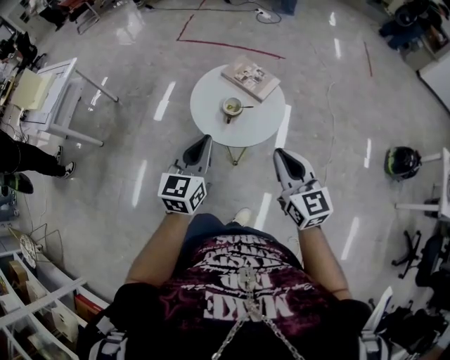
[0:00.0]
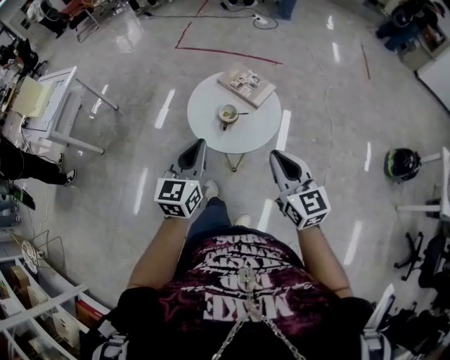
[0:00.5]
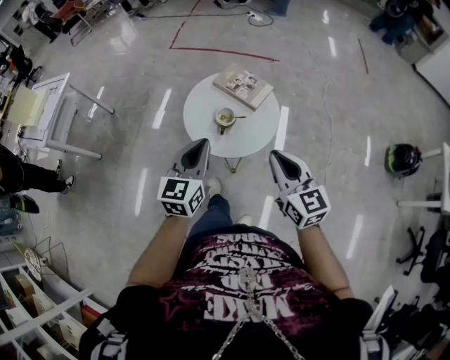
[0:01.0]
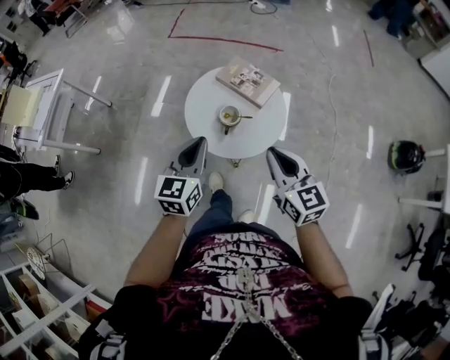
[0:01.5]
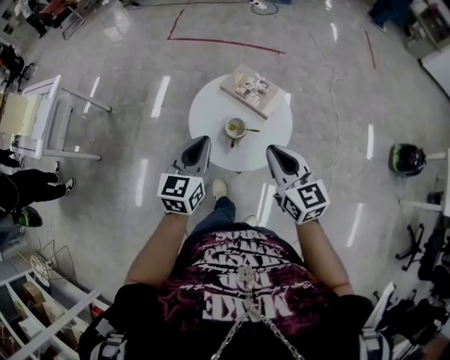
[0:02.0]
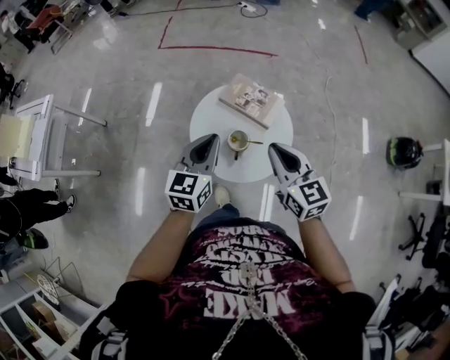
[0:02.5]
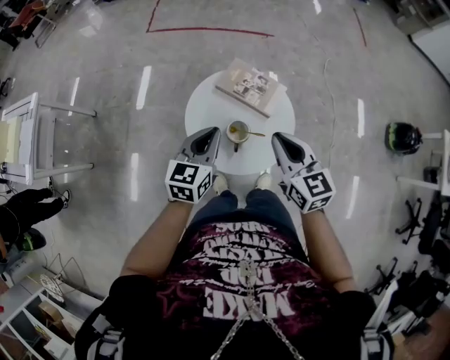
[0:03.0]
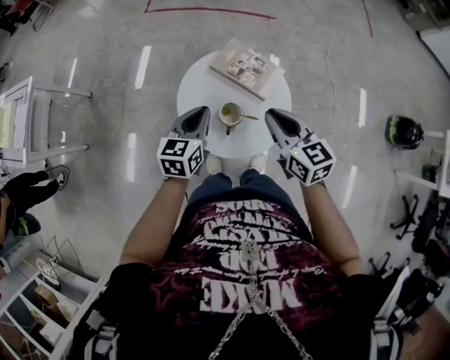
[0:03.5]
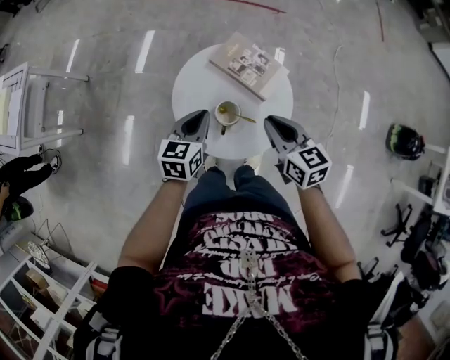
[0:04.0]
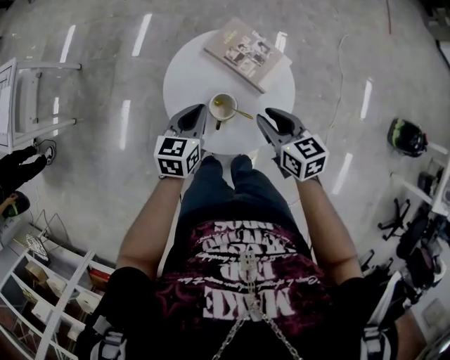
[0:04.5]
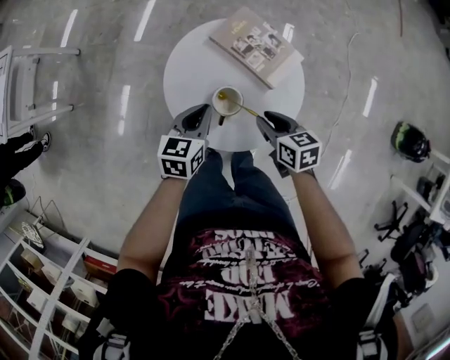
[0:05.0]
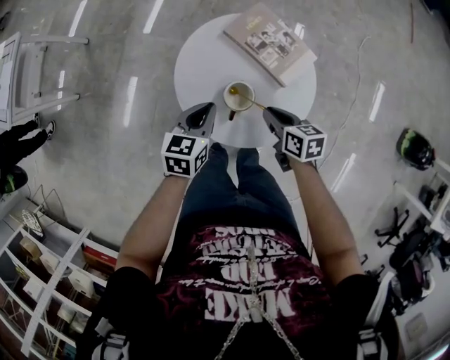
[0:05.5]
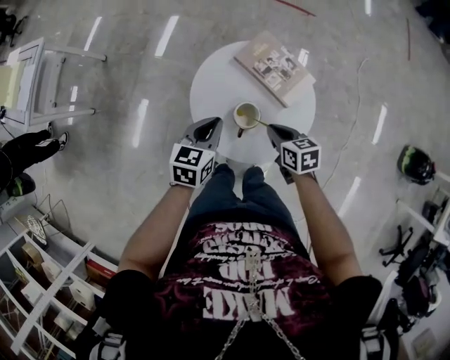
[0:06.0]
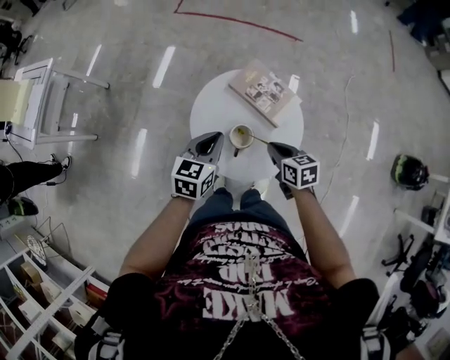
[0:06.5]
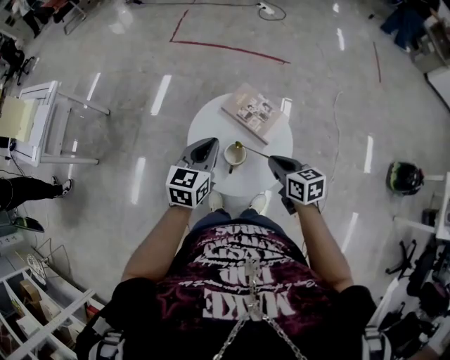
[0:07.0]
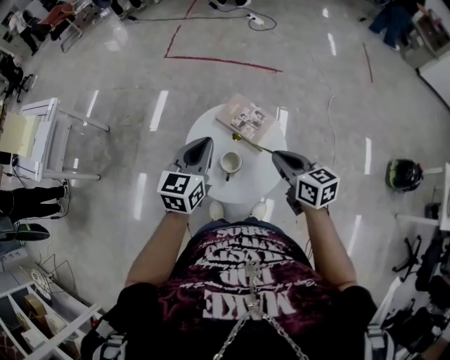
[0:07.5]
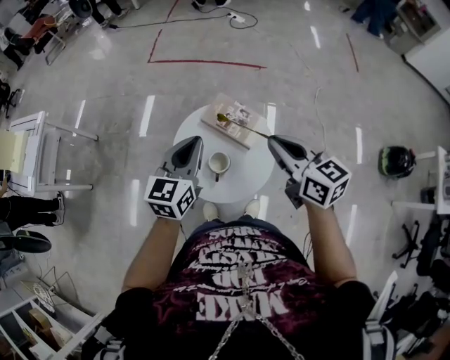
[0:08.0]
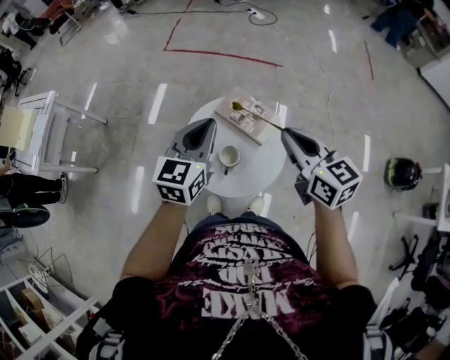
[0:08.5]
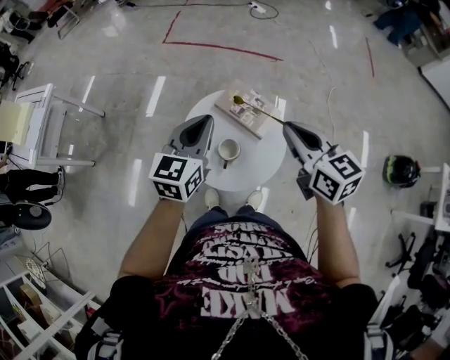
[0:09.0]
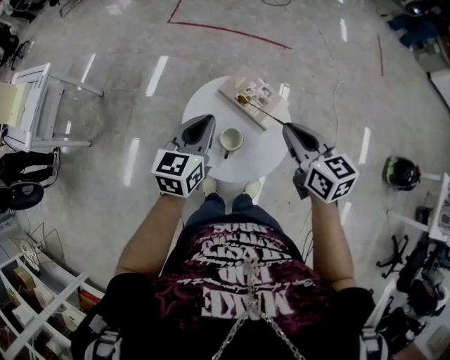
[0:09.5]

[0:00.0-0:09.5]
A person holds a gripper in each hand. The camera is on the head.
0:00.0 to 0:02.0: Both grippers travel together forward, roughly 15 cm.
0:02.0 to 0:04.0: The grippers both shift downward and forward by about 15 cm.
0:04.0 to 0:05.5: The left gripper shifts approximately 10 cm downward. Meanwhile the right gripper goes some 20 cm downward, and changes its angle by some 30 degrees.
0:05.5 to 0:07.5: Both grippers move upward, about 25 cm. The left gripper rotates some 20 degrees; the right gripper changes its angle by about 20 degrees.

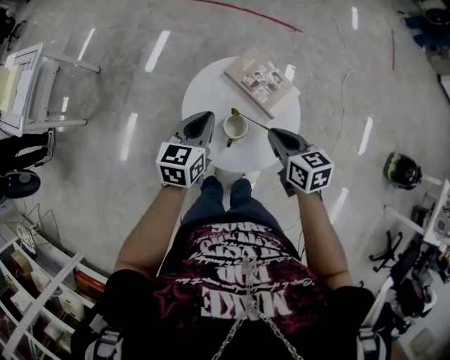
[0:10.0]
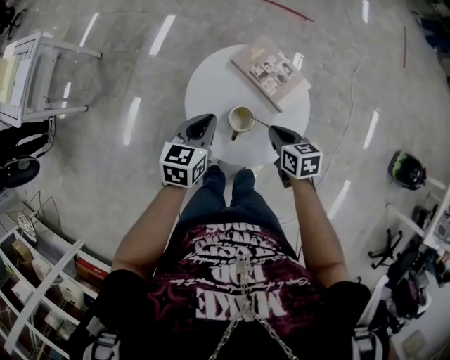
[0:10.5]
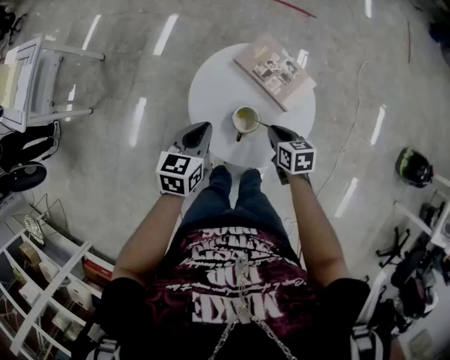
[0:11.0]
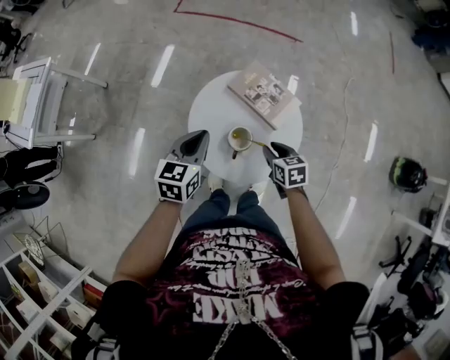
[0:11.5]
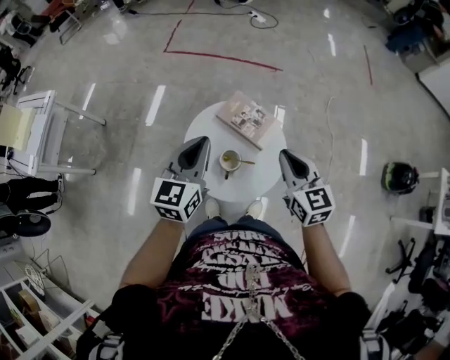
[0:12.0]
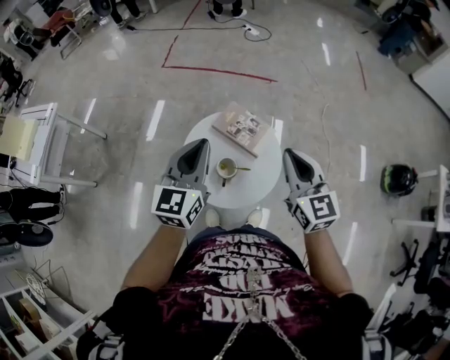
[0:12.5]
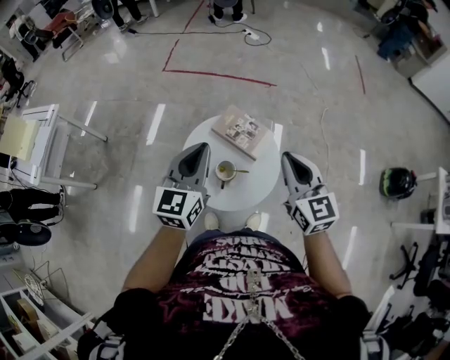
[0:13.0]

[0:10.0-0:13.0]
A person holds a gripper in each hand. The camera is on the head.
0:10.0 to 0:11.5: The right gripper goes approximately 10 cm downward, and opens its fingers.
0:11.5 to 0:13.0: The right gripper goes some 35 cm upward, points its fingers approximately 40 degrees further upward, and closes. Meanwhile the left gripper moves upward, about 20 cm, and changes its angle by approximately 30 degrees.

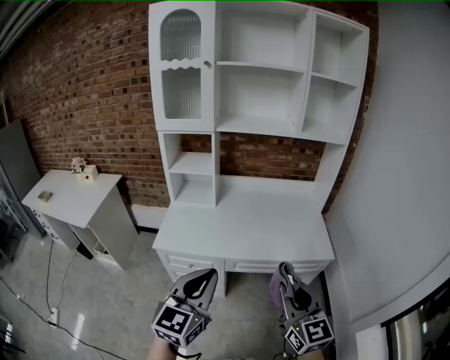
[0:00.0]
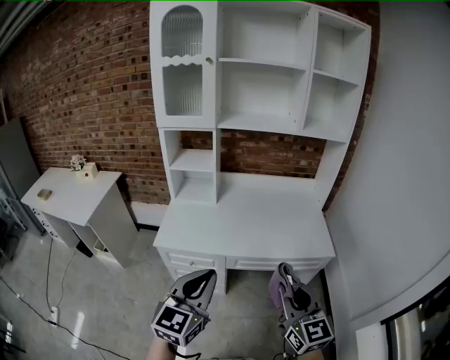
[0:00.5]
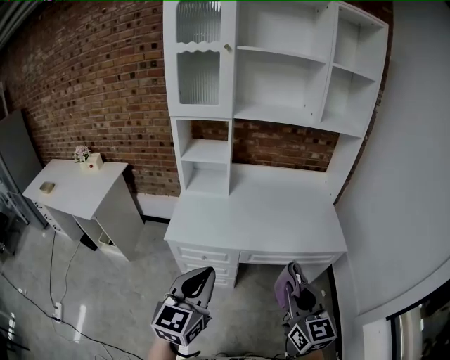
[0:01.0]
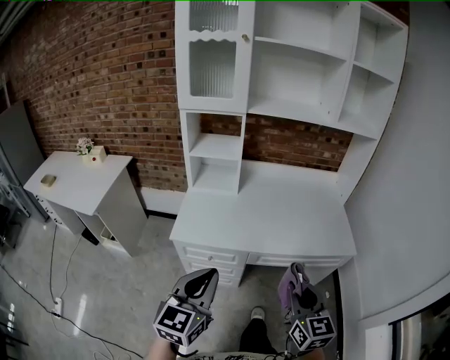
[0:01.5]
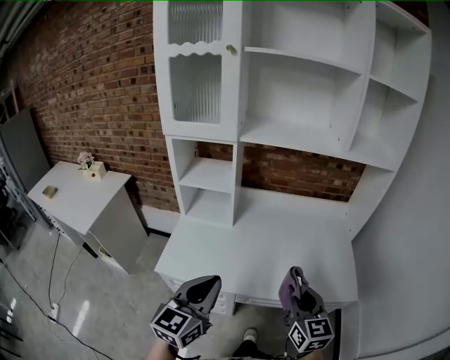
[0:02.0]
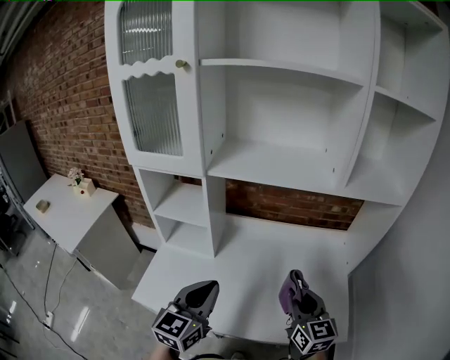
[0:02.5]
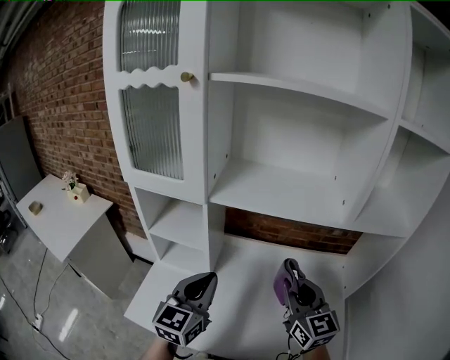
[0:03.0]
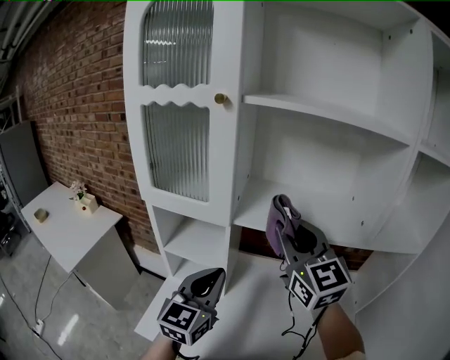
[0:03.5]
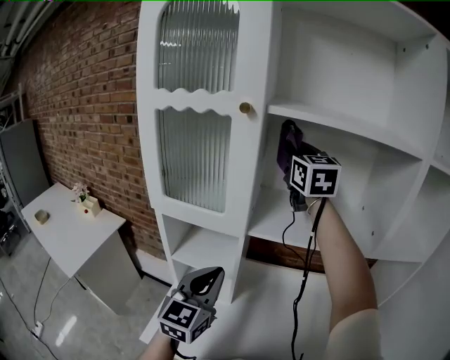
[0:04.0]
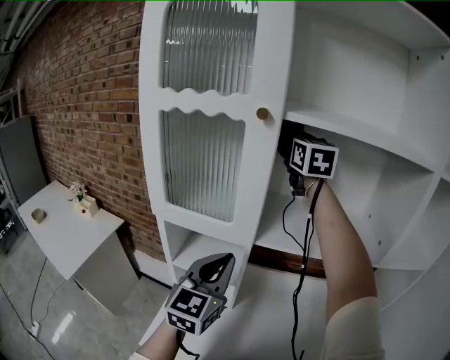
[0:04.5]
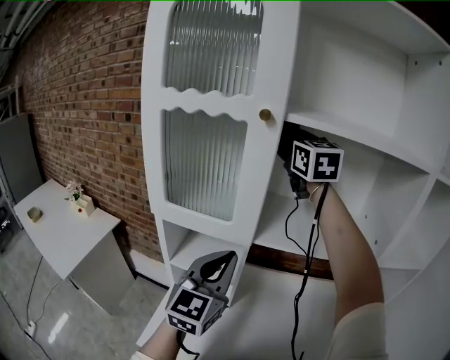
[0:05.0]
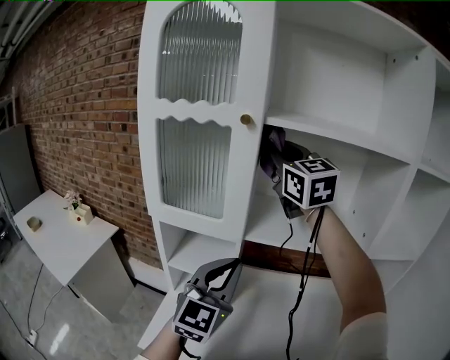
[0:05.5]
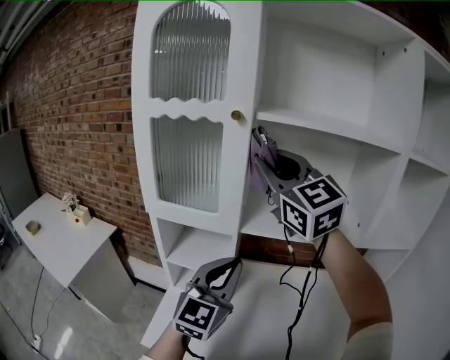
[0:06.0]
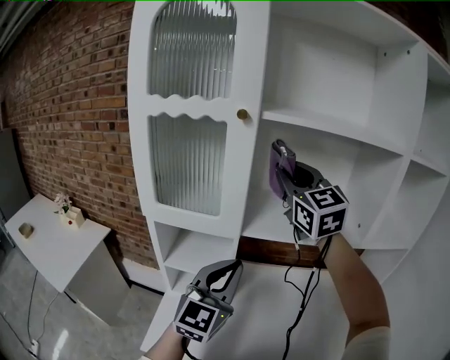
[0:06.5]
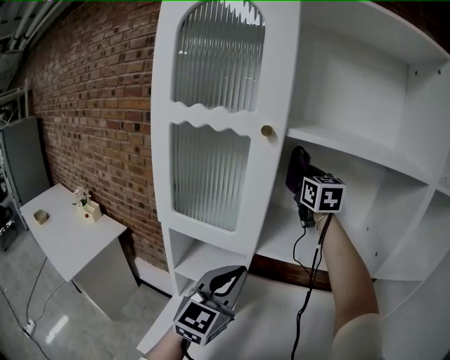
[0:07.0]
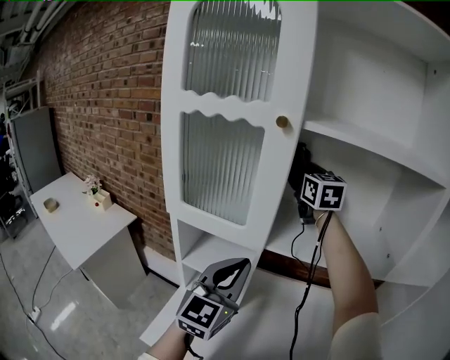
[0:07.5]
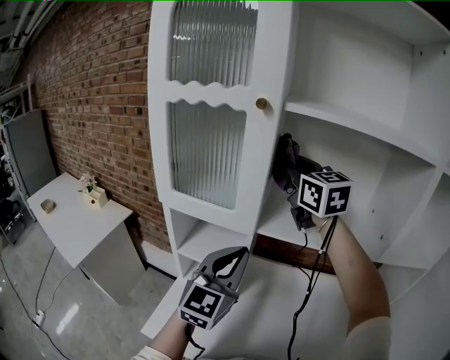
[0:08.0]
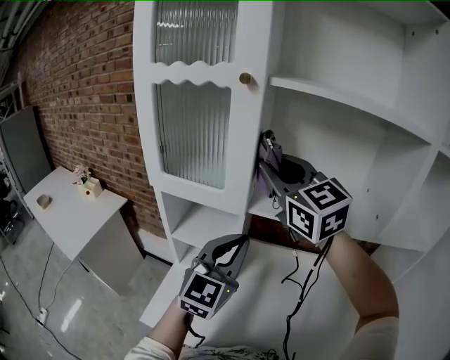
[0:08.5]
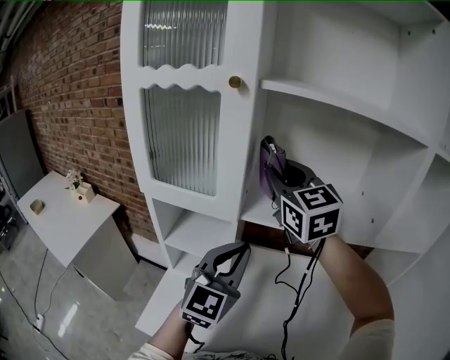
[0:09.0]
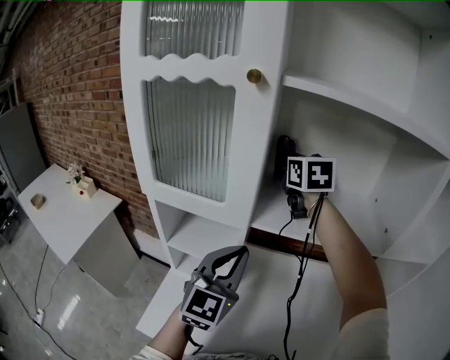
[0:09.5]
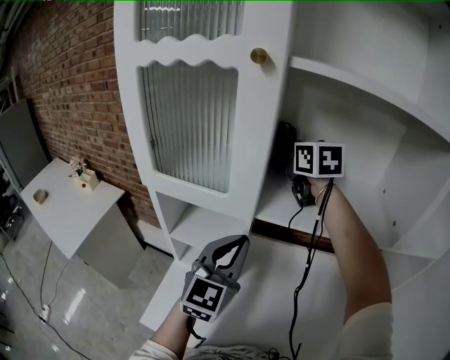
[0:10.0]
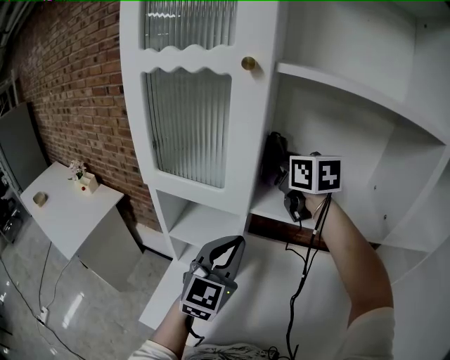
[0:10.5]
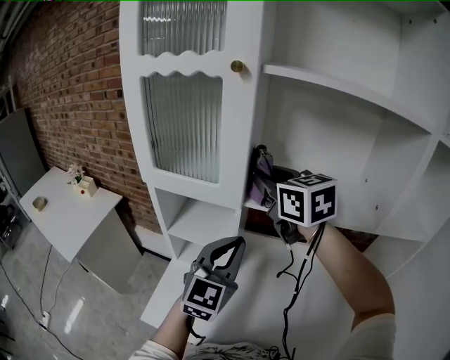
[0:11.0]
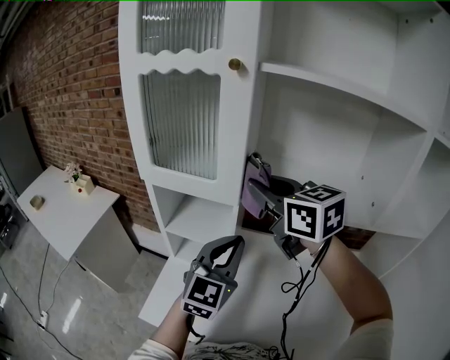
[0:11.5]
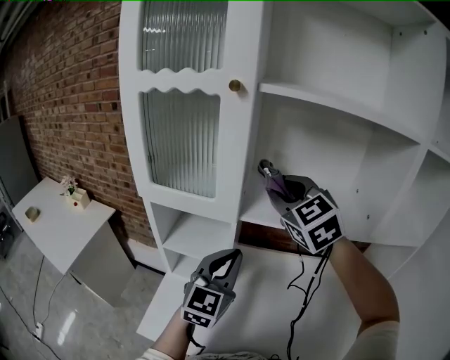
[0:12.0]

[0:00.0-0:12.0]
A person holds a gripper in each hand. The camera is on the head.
0:00.0 to 0:02.0: The two grippers go approximately 25 cm forward.
0:02.0 to 0:04.0: The right gripper shifts about 70 cm forward and upward, and swivels roughly 20 degrees. Meanwhile the left gripper shifts about 35 cm forward.
0:04.0 to 0:06.0: The left gripper moves upward, approximately 5 cm. The right gripper moves backward, about 15 cm, and rotates about 20 degrees.
0:06.0 to 0:08.0: The left gripper ends up roughly 5 cm from where it was. The right gripper moves forward and downward, roughly 15 cm.
0:08.0 to 0:10.0: The right gripper moves forward and downward, about 15 cm, and rotates some 20 degrees, while the left gripper changes place by some 5 cm.
0:10.0 to 0:12.0: The right gripper is displaced backward by some 15 cm, and swivels roughly 30 degrees.

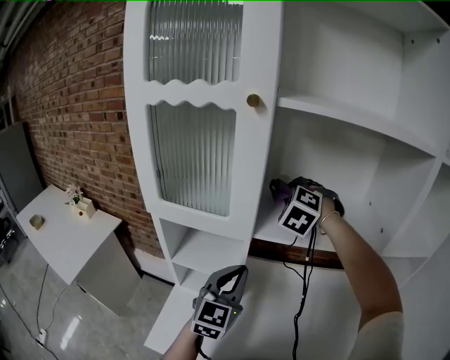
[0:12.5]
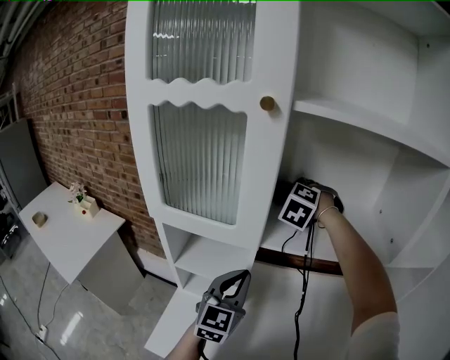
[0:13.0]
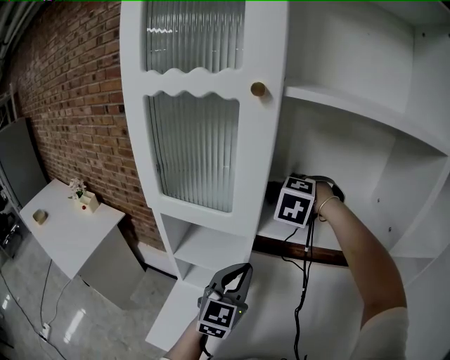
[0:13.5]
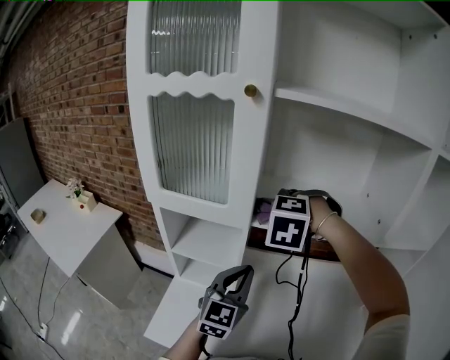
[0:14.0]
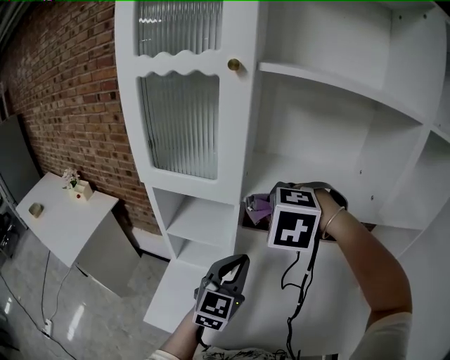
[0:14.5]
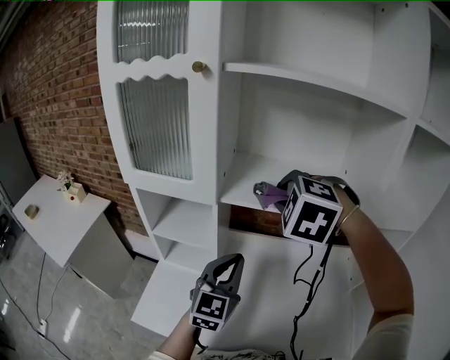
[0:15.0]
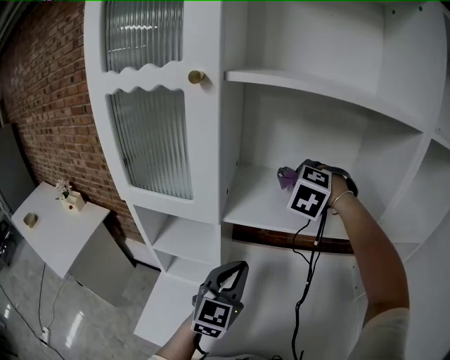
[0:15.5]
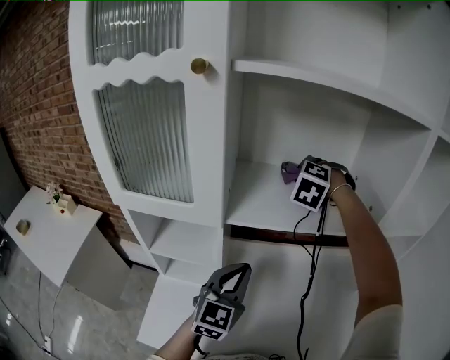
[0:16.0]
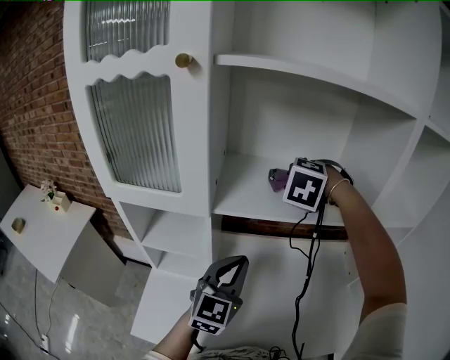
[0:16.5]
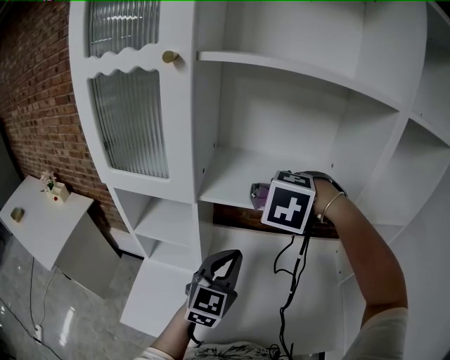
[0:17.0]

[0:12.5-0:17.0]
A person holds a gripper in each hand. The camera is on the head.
0:12.5 to 0:14.5: The left gripper moves approximately 5 cm; the right gripper is displaced backward by approximately 20 cm, and rotates roughly 30 degrees.
0:14.5 to 0:17.0: Both grippers travel together to the right, about 10 cm. The right gripper travels forward and back again, about 25 cm each way.
